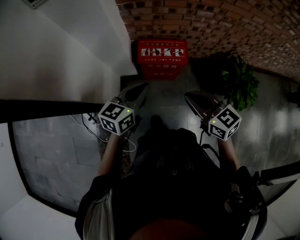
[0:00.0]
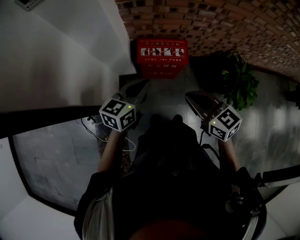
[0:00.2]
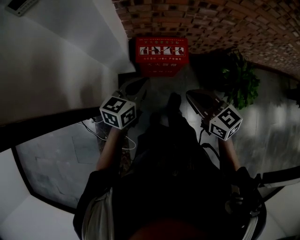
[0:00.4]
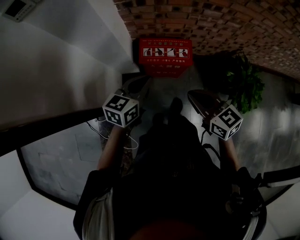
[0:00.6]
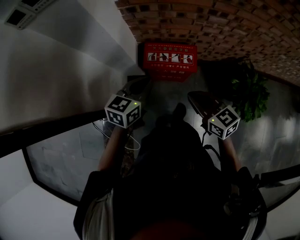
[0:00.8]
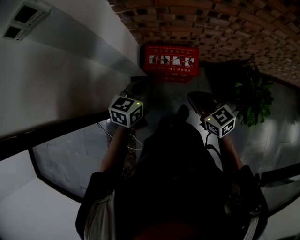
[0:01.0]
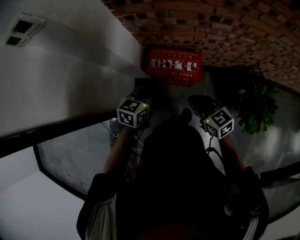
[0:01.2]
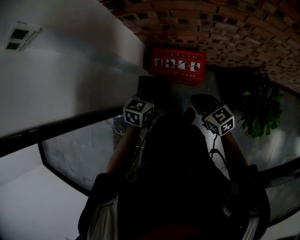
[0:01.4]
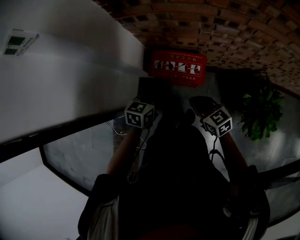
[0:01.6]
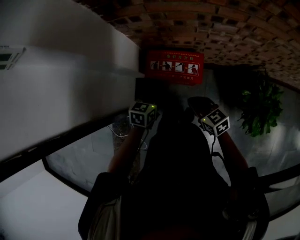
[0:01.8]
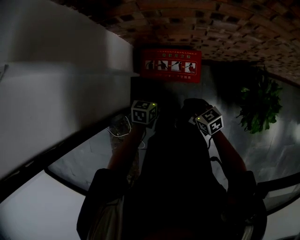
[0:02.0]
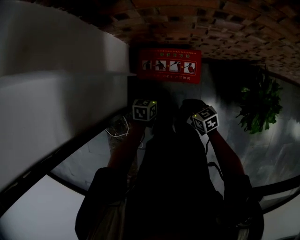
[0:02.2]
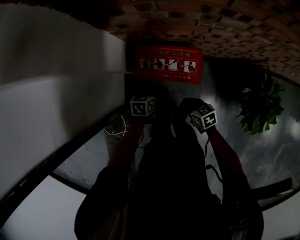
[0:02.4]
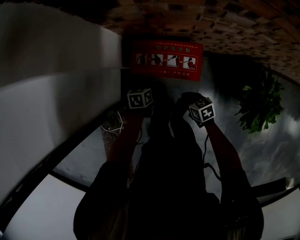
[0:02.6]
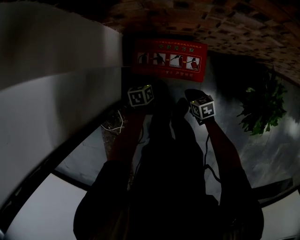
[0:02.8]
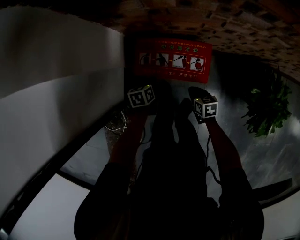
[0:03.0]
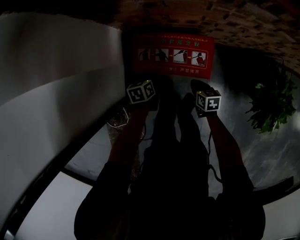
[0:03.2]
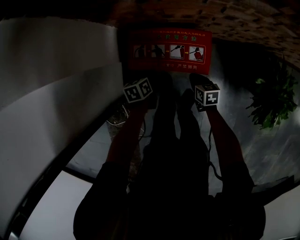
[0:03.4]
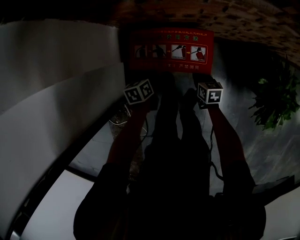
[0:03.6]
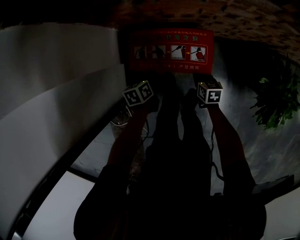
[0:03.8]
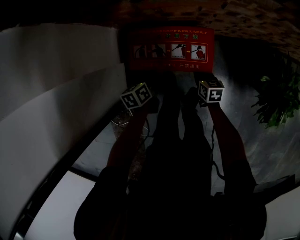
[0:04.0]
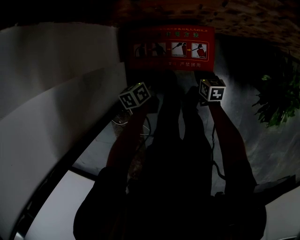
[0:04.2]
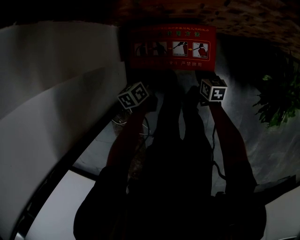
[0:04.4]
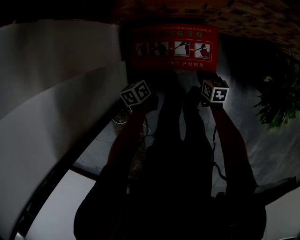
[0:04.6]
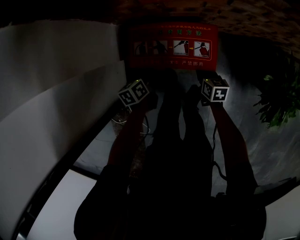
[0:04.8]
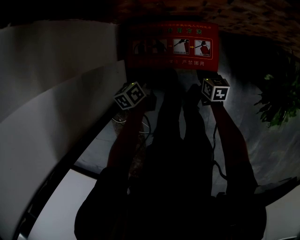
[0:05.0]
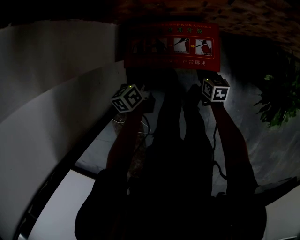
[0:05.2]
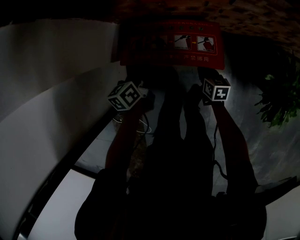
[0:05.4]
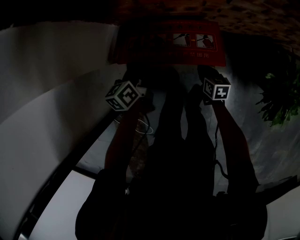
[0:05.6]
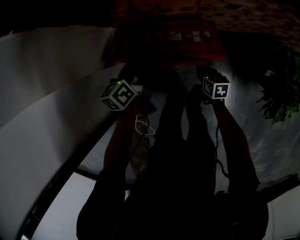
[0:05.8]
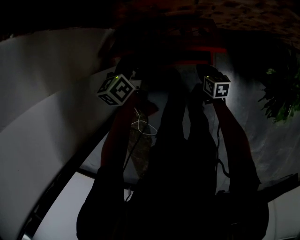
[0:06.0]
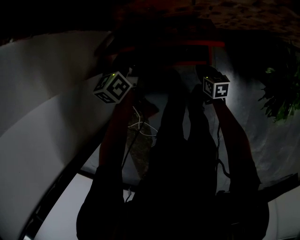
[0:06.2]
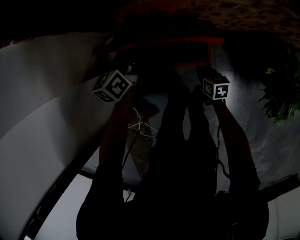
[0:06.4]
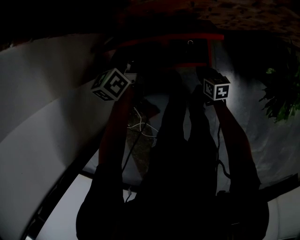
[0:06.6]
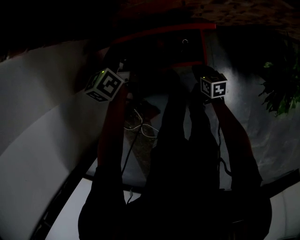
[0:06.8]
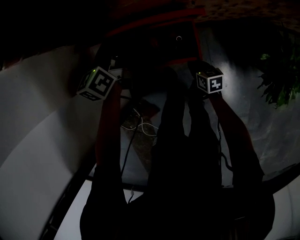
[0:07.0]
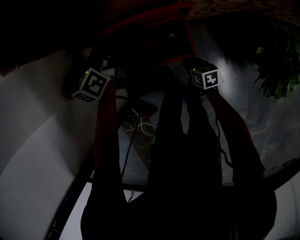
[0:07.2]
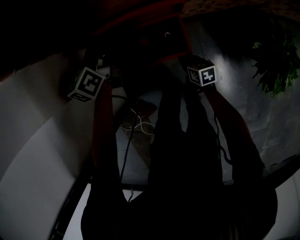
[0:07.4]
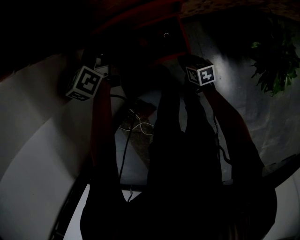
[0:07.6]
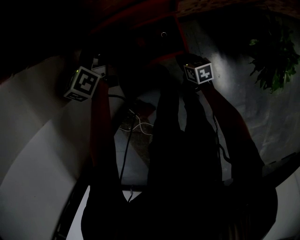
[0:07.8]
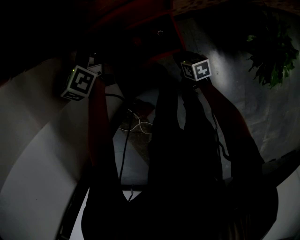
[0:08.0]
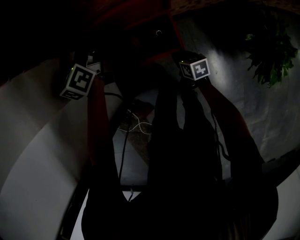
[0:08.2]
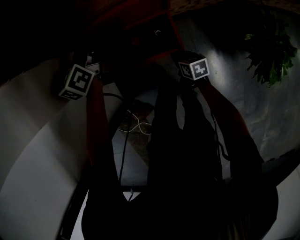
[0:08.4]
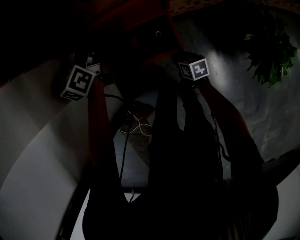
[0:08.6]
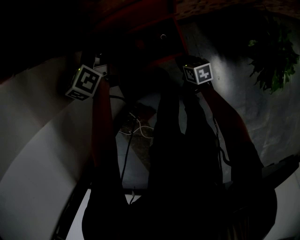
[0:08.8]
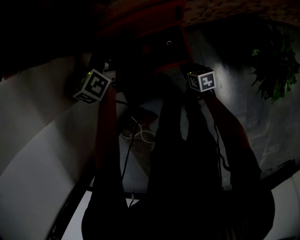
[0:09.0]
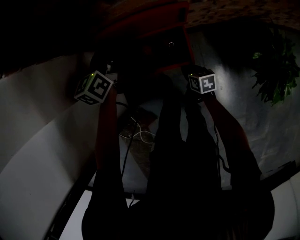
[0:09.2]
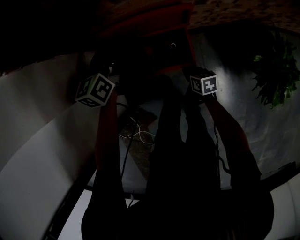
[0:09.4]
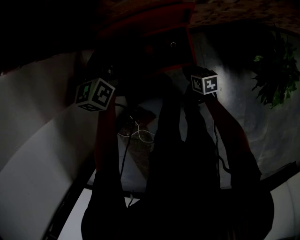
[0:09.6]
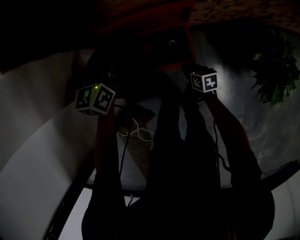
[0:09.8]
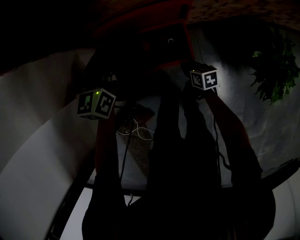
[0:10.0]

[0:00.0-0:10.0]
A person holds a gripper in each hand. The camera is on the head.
0:00.0 to 0:01.4: Both grippers travel together forward, downward and to the right, some 20 cm. The left gripper swivels some 20 degrees.
0:01.4 to 0:02.8: Both grippers travel together downward, some 30 cm. The right gripper turns by approximately 30 degrees. Meanwhile the left gripper swivels about 30 degrees.
0:02.8 to 0:04.2: The right gripper moves forward and downward, about 10 cm, and turns by approximately 20 degrees.
0:04.2 to 0:05.8: The left gripper goes about 10 cm upward and forward.
0:05.8 to 0:07.2: The left gripper travels forward and upward by some 15 cm.
0:07.2 to 0:08.6: There are only small adjustments of the grippers.
0:08.6 to 0:10.0: The left gripper goes approximately 5 cm backward.

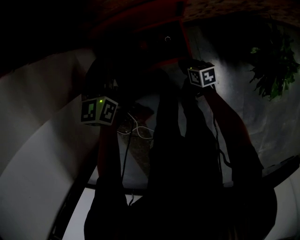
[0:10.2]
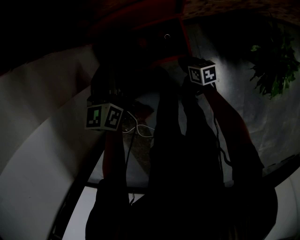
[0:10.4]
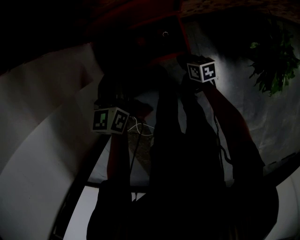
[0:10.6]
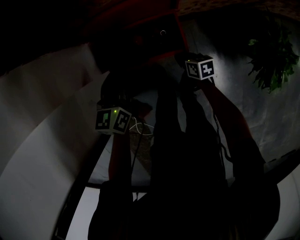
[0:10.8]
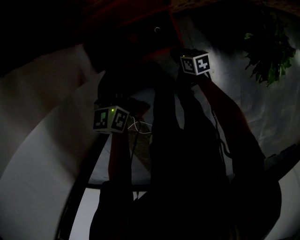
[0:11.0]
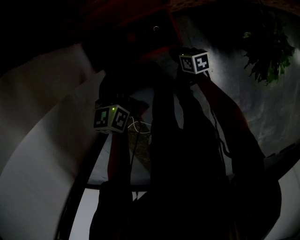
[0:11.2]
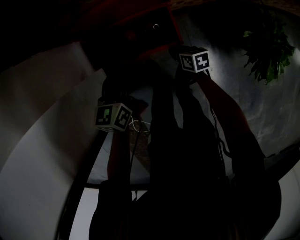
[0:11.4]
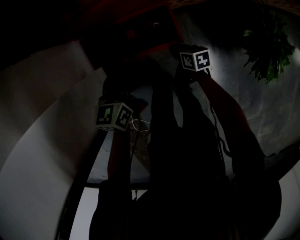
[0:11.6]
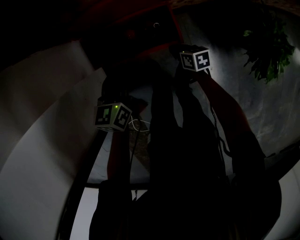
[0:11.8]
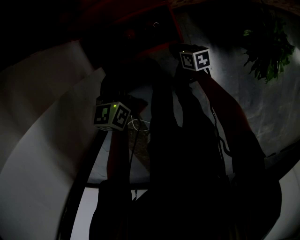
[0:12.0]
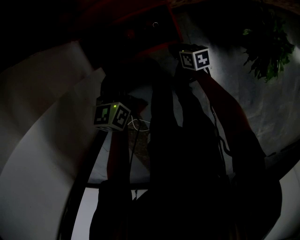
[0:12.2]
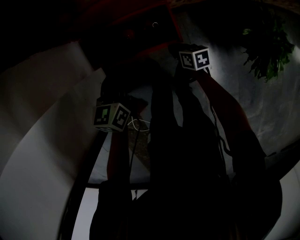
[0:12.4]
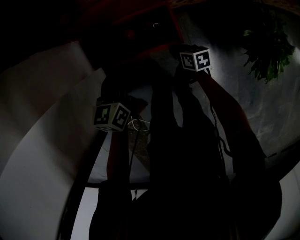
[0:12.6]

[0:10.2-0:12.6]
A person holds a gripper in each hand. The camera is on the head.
0:10.2 to 0:11.4: The left gripper travels backward and downward by about 10 cm.
0:11.4 to 0:12.6: The two grippers keep their place.

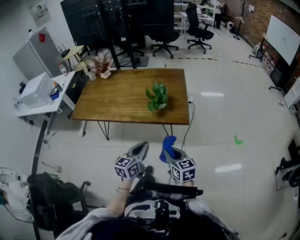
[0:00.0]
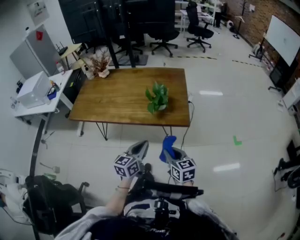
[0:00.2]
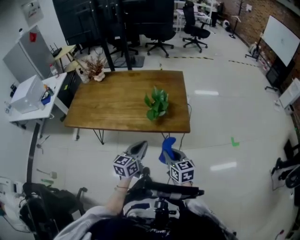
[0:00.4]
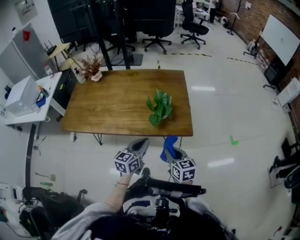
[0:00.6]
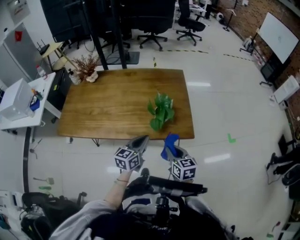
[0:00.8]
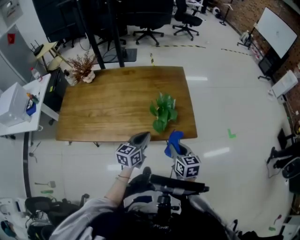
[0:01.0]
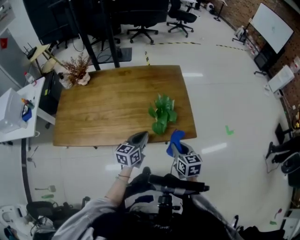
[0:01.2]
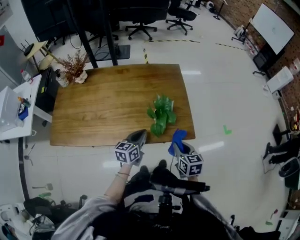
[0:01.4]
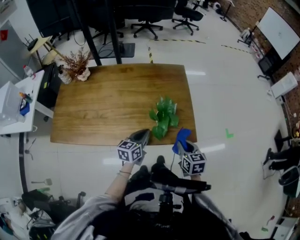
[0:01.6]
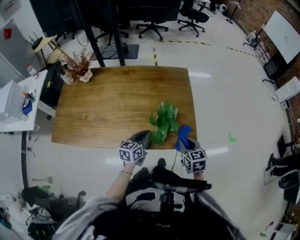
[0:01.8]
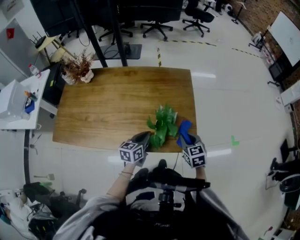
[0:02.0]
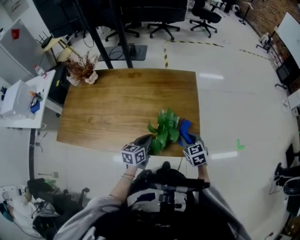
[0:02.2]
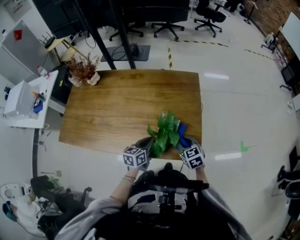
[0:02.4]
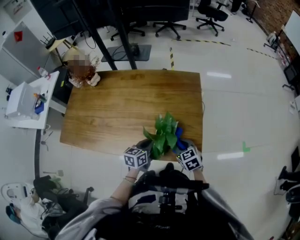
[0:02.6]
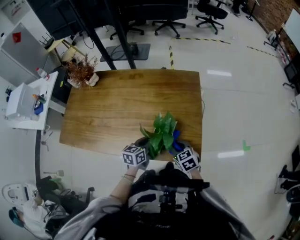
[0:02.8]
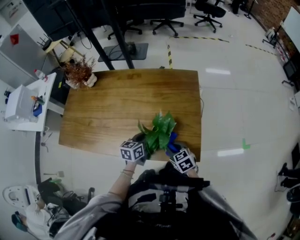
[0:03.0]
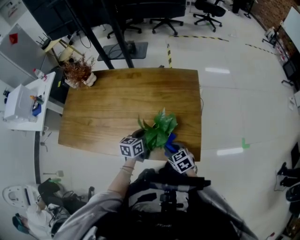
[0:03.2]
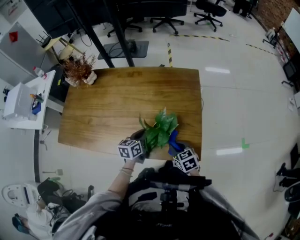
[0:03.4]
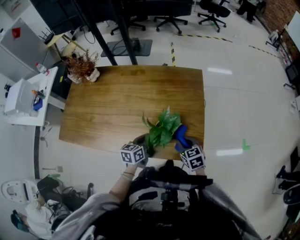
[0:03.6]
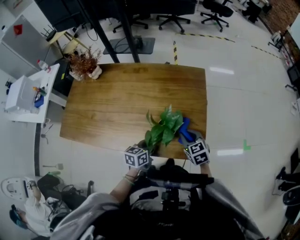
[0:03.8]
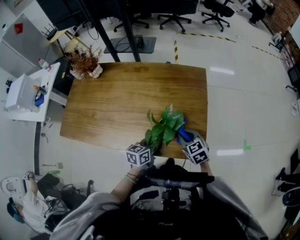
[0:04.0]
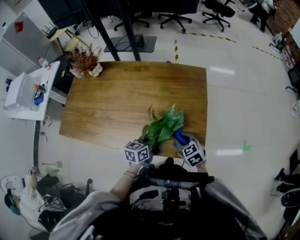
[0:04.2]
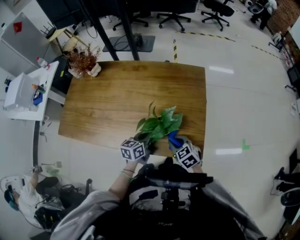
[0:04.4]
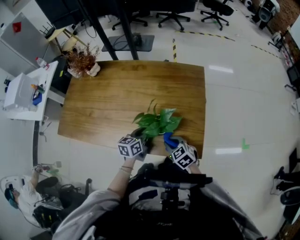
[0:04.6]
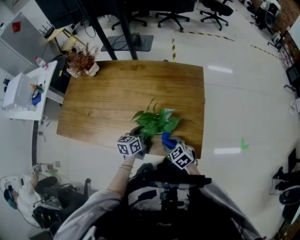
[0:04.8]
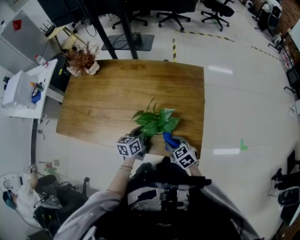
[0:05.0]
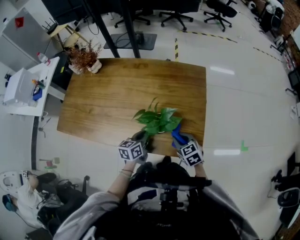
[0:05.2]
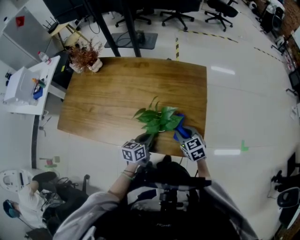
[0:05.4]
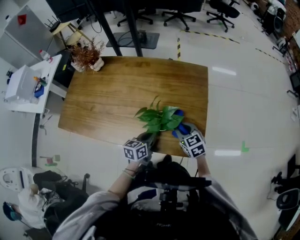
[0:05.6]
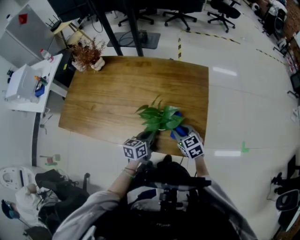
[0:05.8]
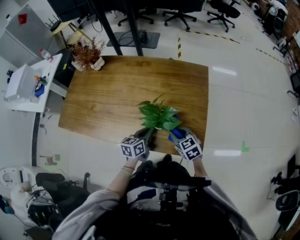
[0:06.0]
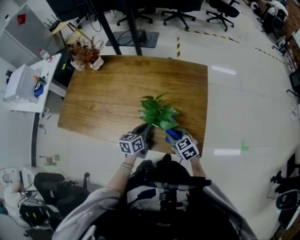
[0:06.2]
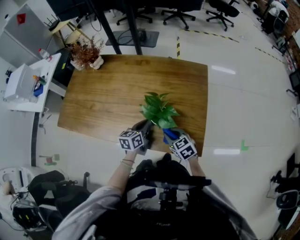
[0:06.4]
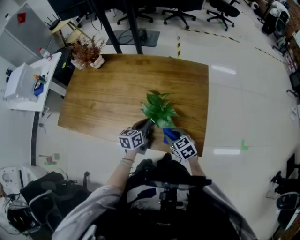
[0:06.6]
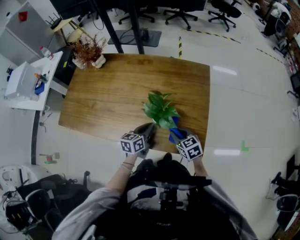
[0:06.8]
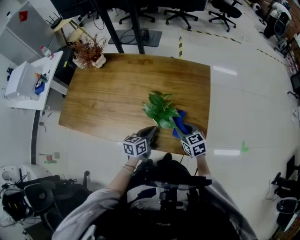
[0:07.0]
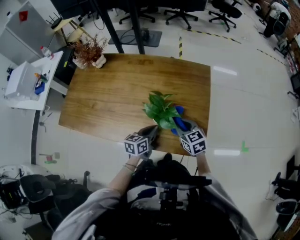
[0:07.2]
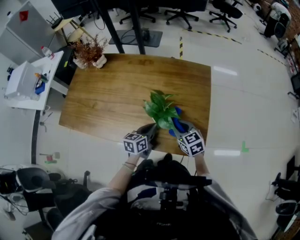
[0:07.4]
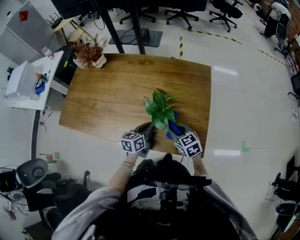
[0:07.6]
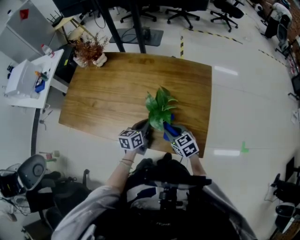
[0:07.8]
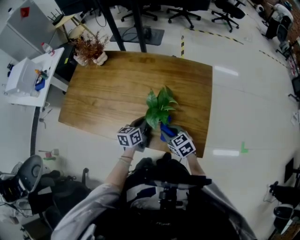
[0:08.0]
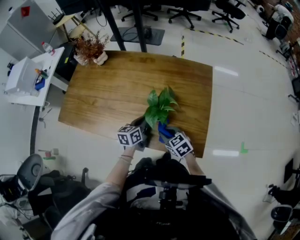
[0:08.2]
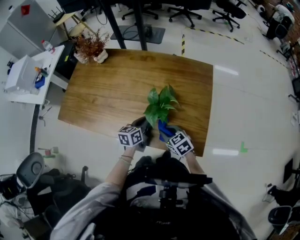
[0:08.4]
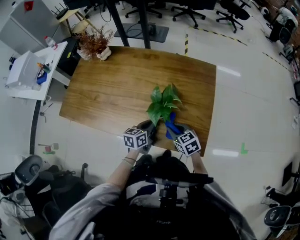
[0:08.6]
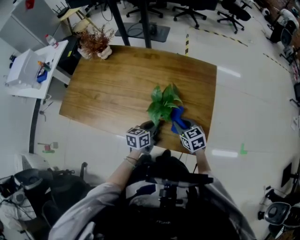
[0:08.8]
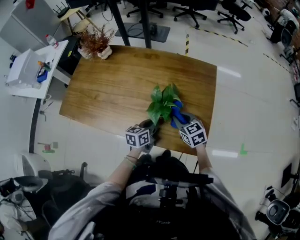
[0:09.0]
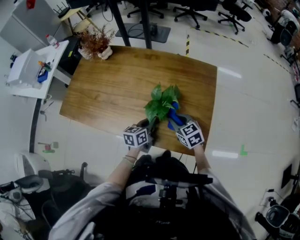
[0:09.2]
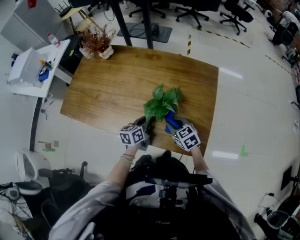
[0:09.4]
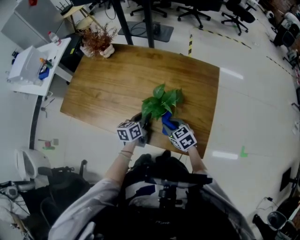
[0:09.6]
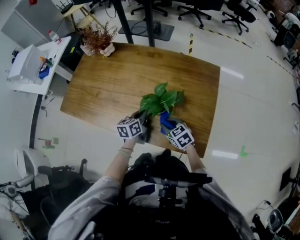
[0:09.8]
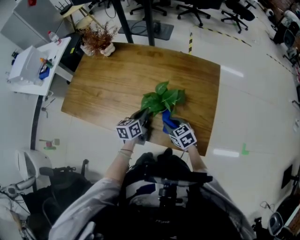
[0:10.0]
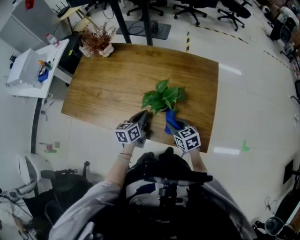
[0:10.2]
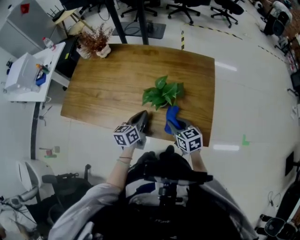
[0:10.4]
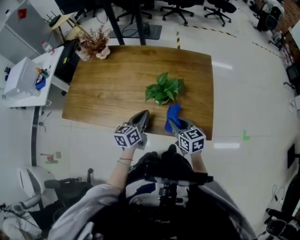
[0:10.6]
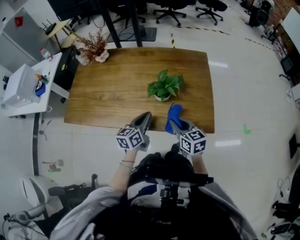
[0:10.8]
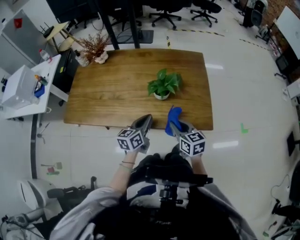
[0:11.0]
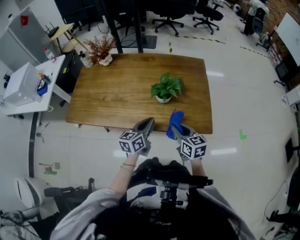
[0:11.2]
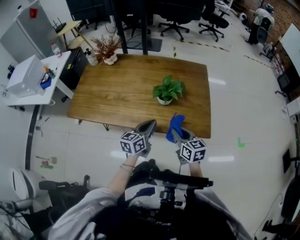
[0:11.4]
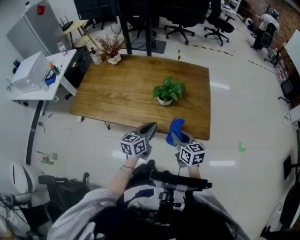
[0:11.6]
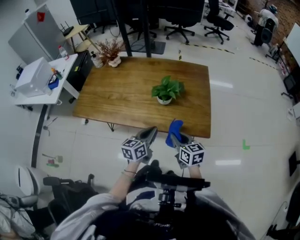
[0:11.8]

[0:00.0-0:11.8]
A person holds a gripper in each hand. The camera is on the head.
0:00.0 to 0:01.4: Both grippers move forward, some 25 cm. The right gripper changes its angle by some 20 degrees.
0:01.4 to 0:03.0: Both grippers move forward and downward, about 15 cm. The right gripper rotates roughly 30 degrees.
0:06.0 to 0:07.4: The grippers move only a little.
0:08.8 to 0:10.4: The right gripper shifts some 5 cm to the left; the left gripper goes roughly 10 cm to the left.
0:10.4 to 0:11.8: The grippers both shift backward by approximately 15 cm.
